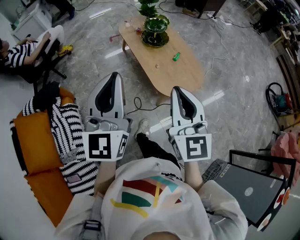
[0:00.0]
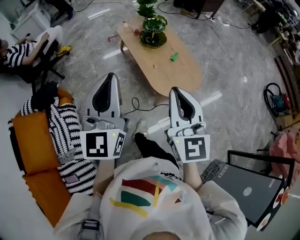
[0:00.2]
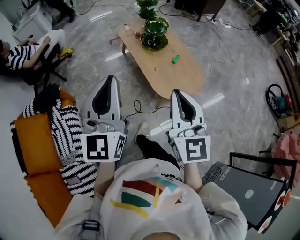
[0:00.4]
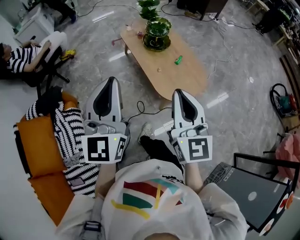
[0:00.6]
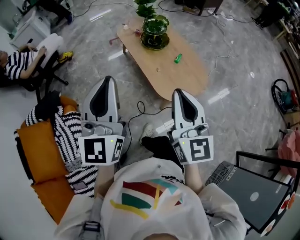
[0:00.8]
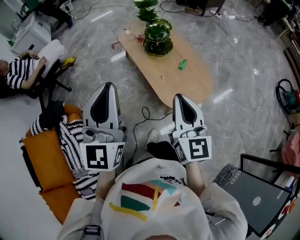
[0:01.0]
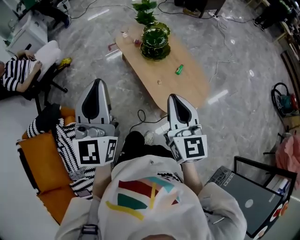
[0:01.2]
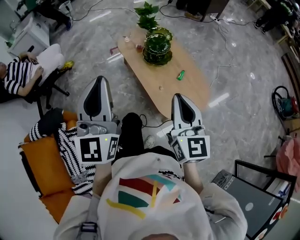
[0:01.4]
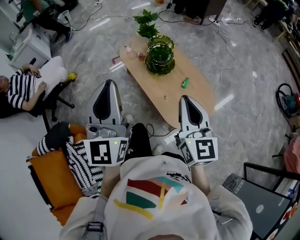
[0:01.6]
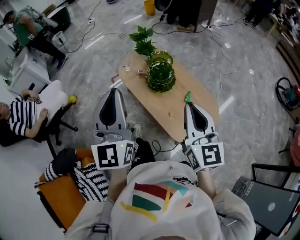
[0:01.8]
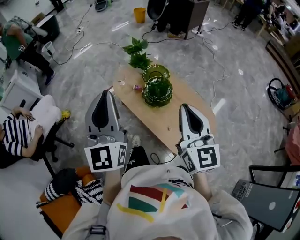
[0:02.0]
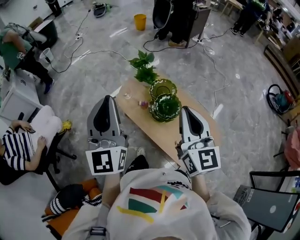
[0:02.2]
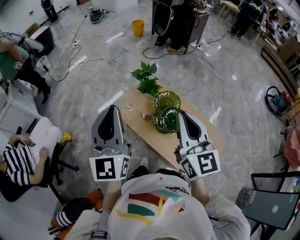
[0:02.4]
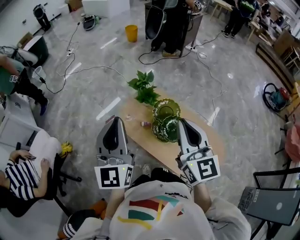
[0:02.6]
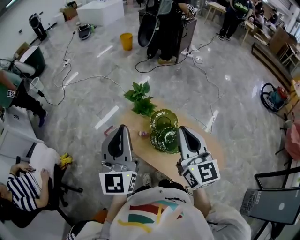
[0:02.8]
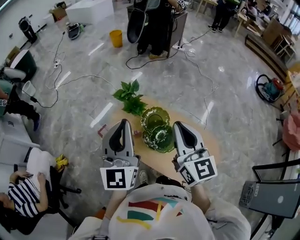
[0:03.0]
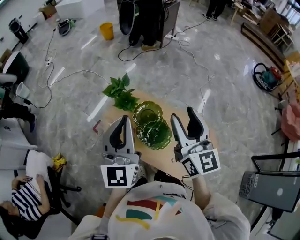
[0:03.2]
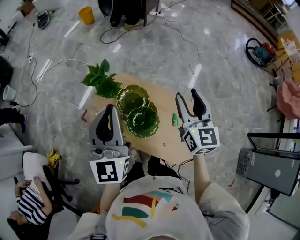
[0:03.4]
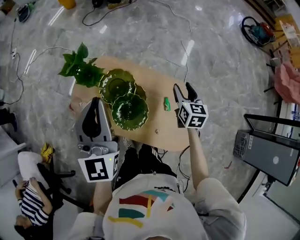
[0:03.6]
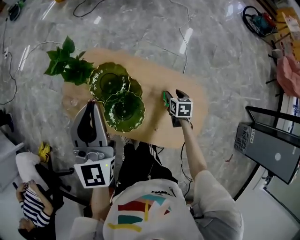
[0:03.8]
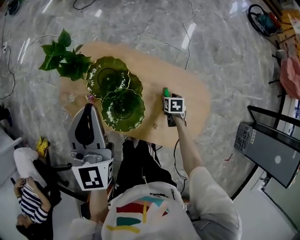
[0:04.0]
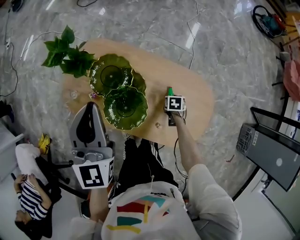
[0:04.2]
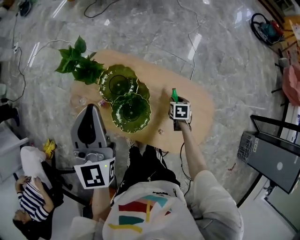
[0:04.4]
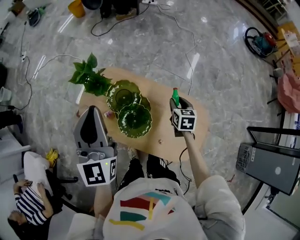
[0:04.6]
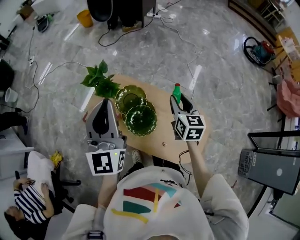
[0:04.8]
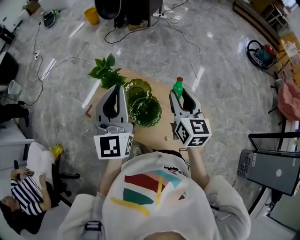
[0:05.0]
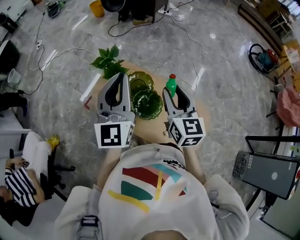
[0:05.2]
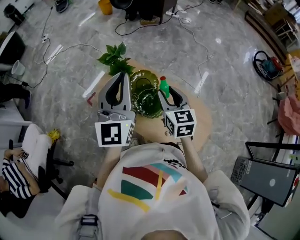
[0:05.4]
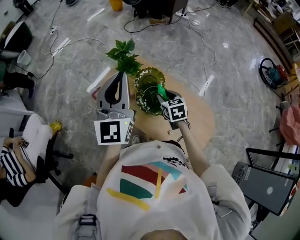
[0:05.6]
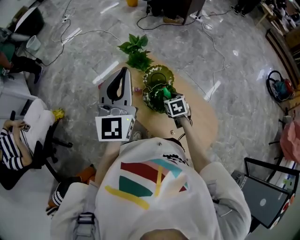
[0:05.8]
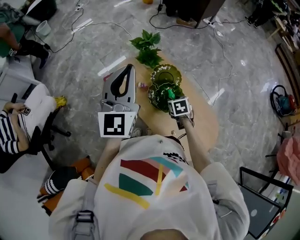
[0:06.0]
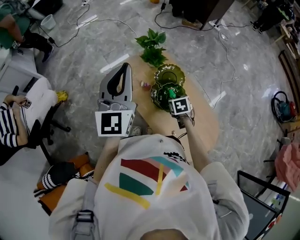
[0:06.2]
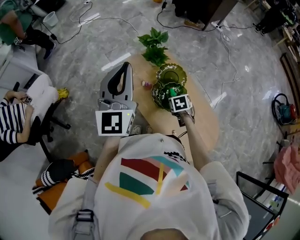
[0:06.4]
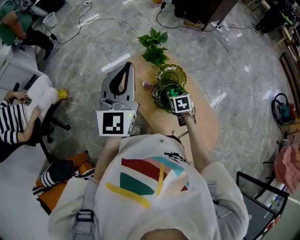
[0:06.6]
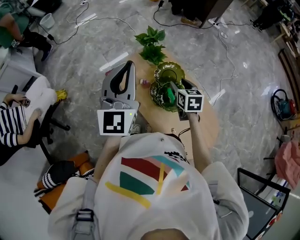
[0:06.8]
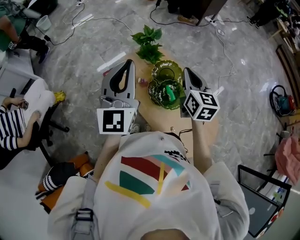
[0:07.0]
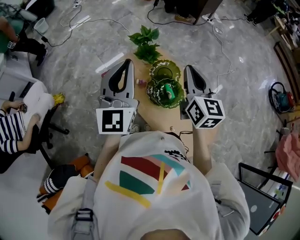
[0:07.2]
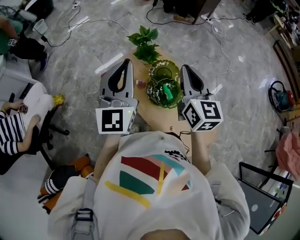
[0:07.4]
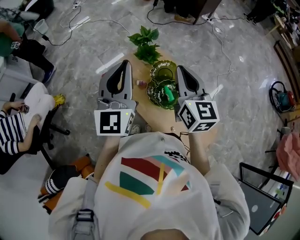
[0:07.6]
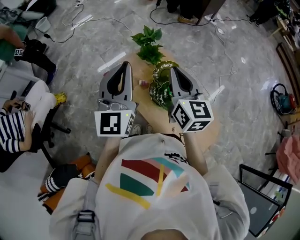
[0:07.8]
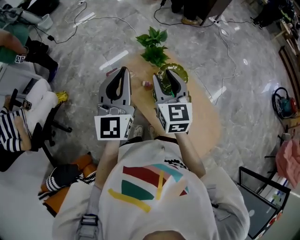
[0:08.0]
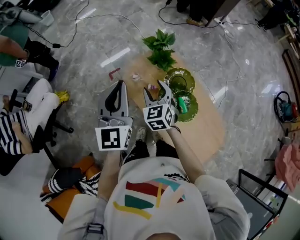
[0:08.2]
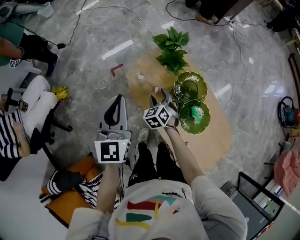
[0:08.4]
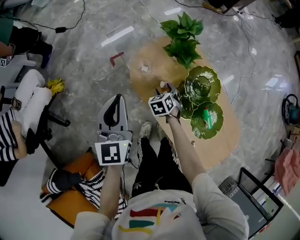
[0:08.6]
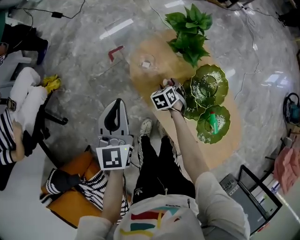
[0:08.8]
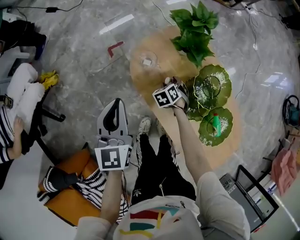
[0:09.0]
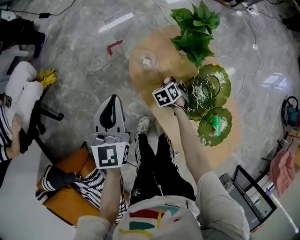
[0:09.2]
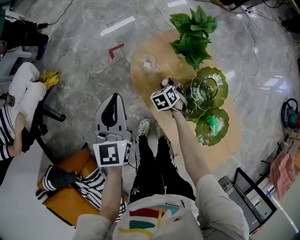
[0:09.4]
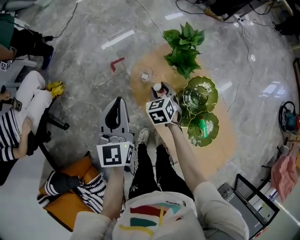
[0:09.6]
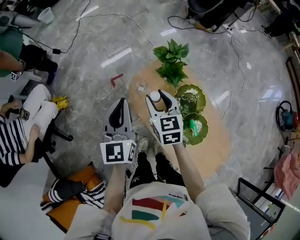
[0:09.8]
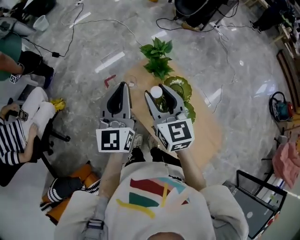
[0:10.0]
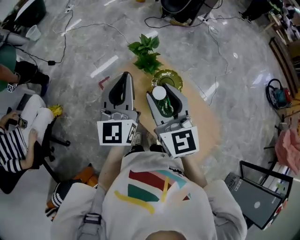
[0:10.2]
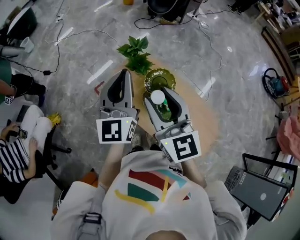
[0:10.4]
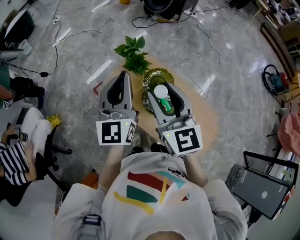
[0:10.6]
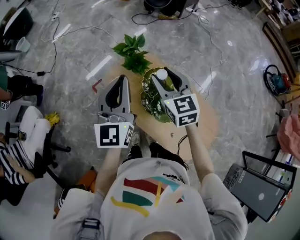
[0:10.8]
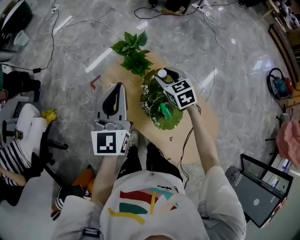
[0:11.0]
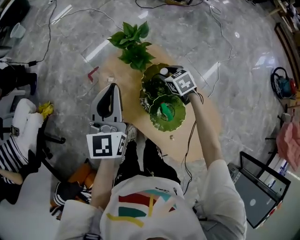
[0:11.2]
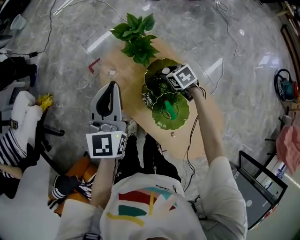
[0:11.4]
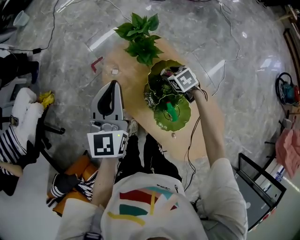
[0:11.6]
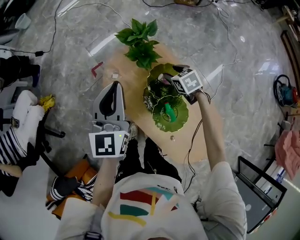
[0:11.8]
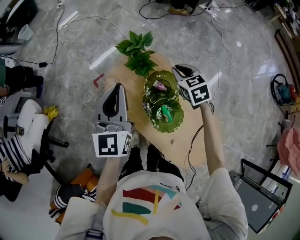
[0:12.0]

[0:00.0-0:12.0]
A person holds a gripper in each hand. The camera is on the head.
0:00.0 to 0:01.6: The grippers both shift forward by approximately 20 cm.
0:01.6 to 0:03.0: The grippers both shift forward by approximately 40 cm. The left gripper rotates about 20 degrees.
0:03.0 to 0:04.4: The left gripper heads downward, covering roughly 15 cm. Meanwhile the right gripper heads downward, covering roughly 50 cm, angles its fingers downward, by about 60 degrees, and opens up.
0:04.4 to 0:06.0: The left gripper moves approximately 20 cm, and changes its angle by roughly 20 degrees; the right gripper changes its angle by some 40 degrees.
0:06.0 to 0:07.6: The right gripper goes approximately 30 cm upward, tips its fingers upward by approximately 50 degrees, and closes.
0:07.6 to 0:09.0: The left gripper shifts about 40 cm downward and to the left, and swivels roughly 30 degrees; the right gripper heads downward, covering approximately 60 cm, angles its fingers downward, by about 60 degrees, and opens its fingers.
0:09.0 to 0:10.4: The right gripper goes approximately 60 cm upward, and tips its fingers upward by approximately 70 degrees. The left gripper heads upward and to the right, covering some 35 cm, and swivels roughly 30 degrees.
0:10.4 to 0:12.0: The right gripper heads downward, forward and to the right, covering about 35 cm, tilts its fingers roughly 40 degrees downward, and closes up; the left gripper travels downward and forward by some 10 cm.

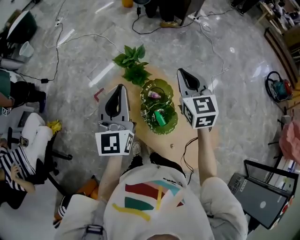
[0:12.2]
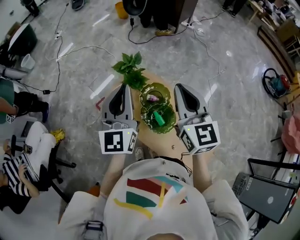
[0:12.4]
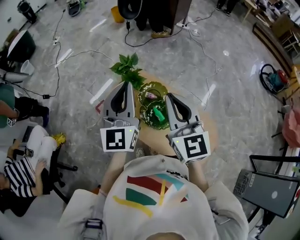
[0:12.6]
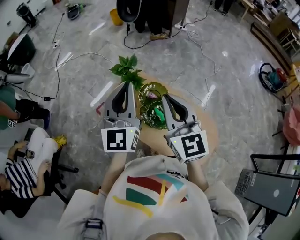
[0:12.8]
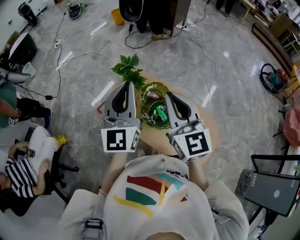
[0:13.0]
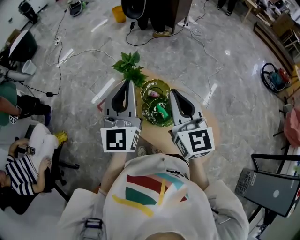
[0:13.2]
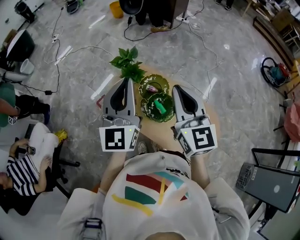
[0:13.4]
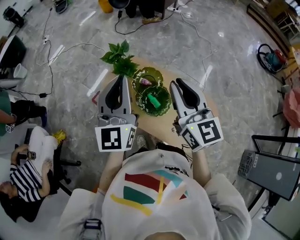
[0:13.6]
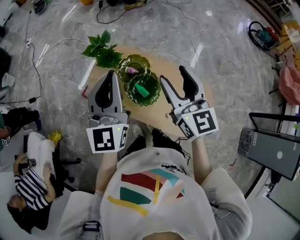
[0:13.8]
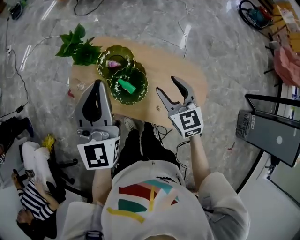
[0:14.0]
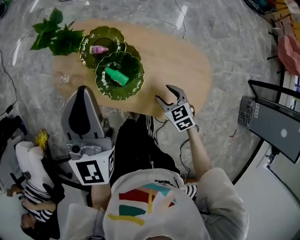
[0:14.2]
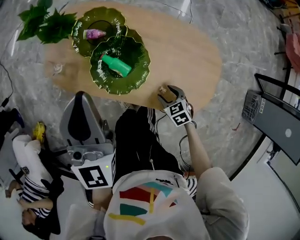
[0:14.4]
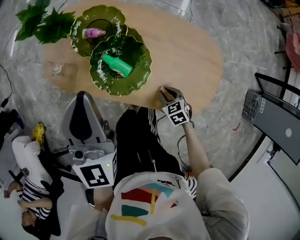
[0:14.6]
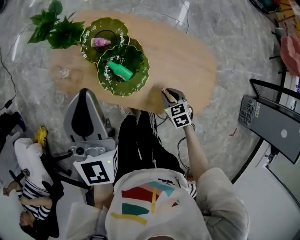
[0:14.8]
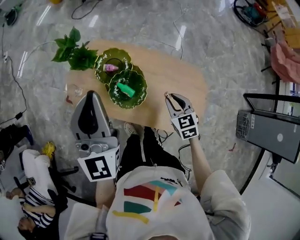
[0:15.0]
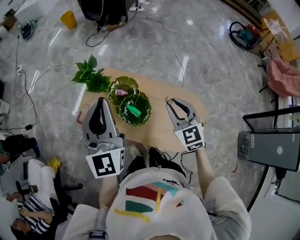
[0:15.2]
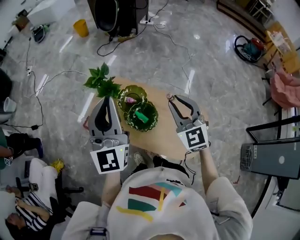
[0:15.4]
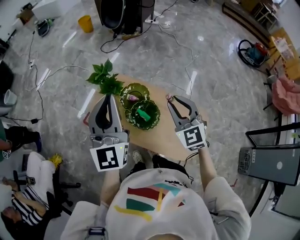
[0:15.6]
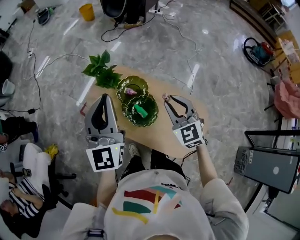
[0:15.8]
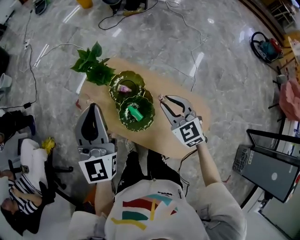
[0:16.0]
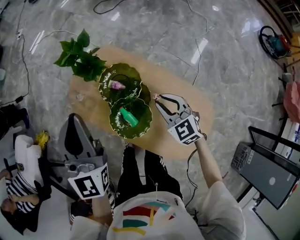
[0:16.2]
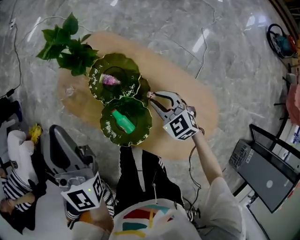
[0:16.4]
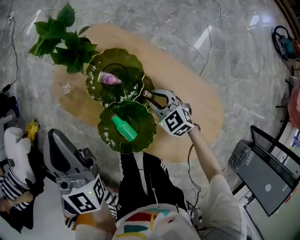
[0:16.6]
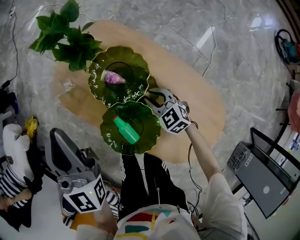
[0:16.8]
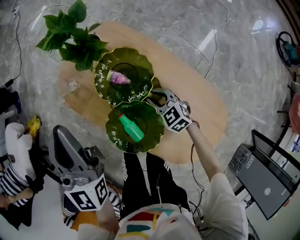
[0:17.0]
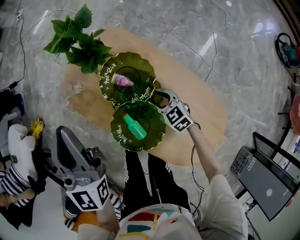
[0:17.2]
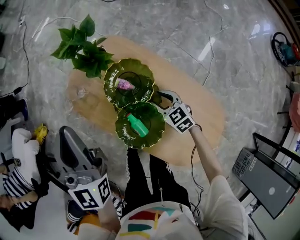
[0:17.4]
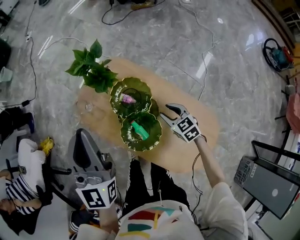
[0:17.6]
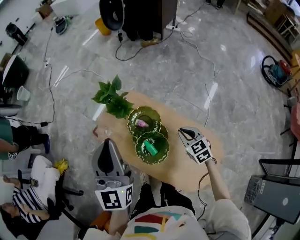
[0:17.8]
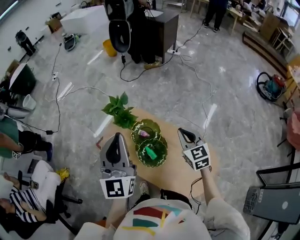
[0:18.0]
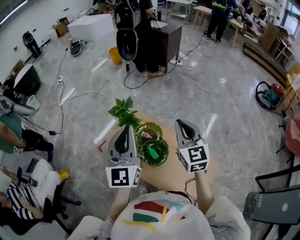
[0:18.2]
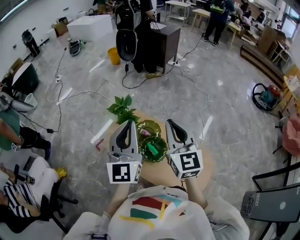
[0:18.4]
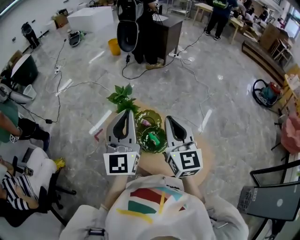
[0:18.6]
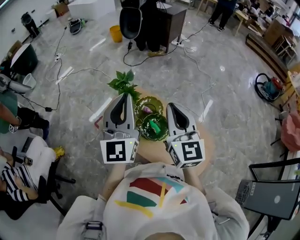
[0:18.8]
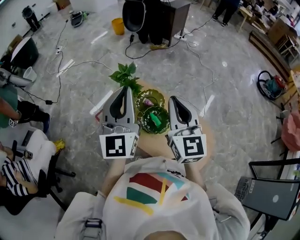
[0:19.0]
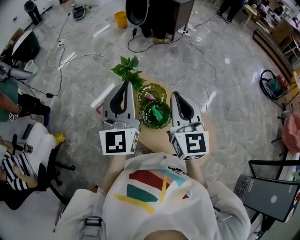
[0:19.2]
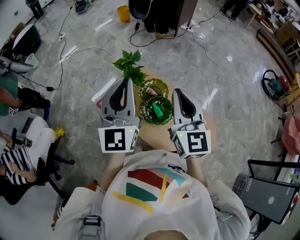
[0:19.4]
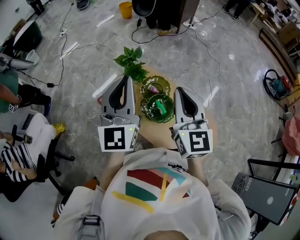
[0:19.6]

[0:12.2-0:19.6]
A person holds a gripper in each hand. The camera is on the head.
0:12.2 to 0:13.6: The left gripper goes some 10 cm backward, to the right and upward; the right gripper moves backward and upward, roughly 20 cm, and turns by roughly 20 degrees.
0:13.6 to 0:15.2: The left gripper moves some 25 cm downward and comes back; the right gripper shifts some 10 cm to the right, goes downward and returns, roughly 60 cm each way, swivels some 30 degrees, and opens, then closes again.
0:15.2 to 0:16.6: The right gripper travels downward by about 35 cm, and rotates approximately 40 degrees. Meanwhile the left gripper goes some 20 cm downward, and changes its angle by approximately 30 degrees.
0:16.6 to 0:18.2: The left gripper goes roughly 25 cm upward, and rotates roughly 20 degrees; the right gripper is displaced upward by approximately 50 cm, and points its fingers roughly 30 degrees further upward.
0:18.2 to 0:19.6: The left gripper changes place by approximately 5 cm, while the right gripper heads to the left and backward, covering about 10 cm.

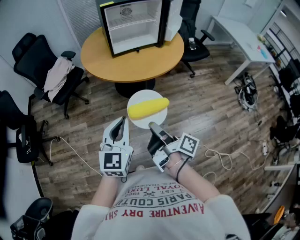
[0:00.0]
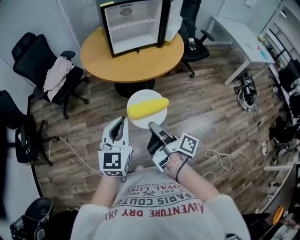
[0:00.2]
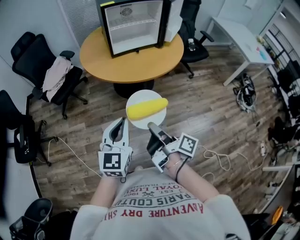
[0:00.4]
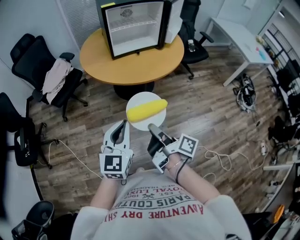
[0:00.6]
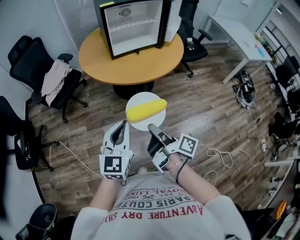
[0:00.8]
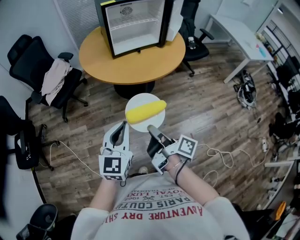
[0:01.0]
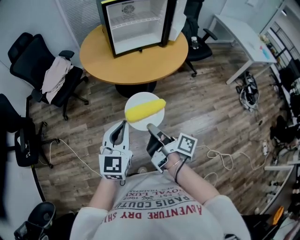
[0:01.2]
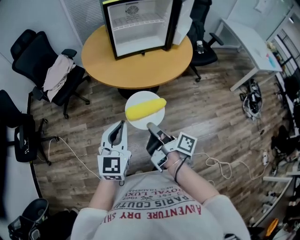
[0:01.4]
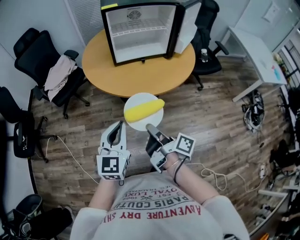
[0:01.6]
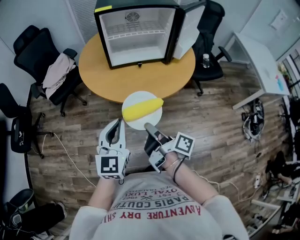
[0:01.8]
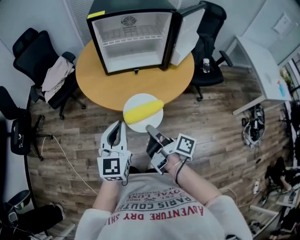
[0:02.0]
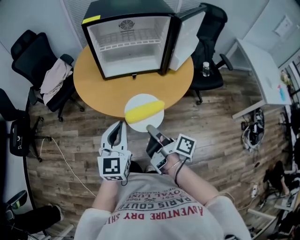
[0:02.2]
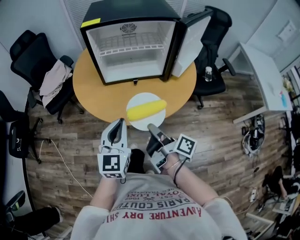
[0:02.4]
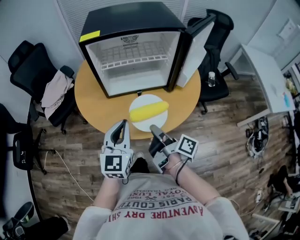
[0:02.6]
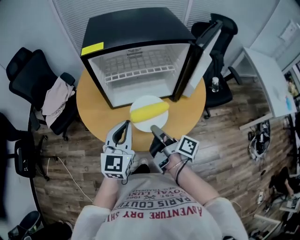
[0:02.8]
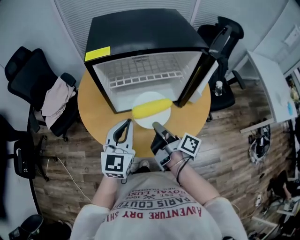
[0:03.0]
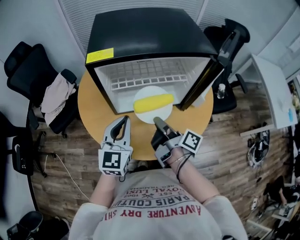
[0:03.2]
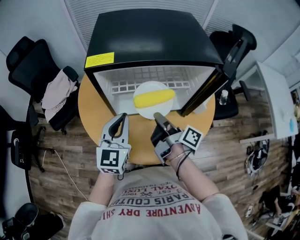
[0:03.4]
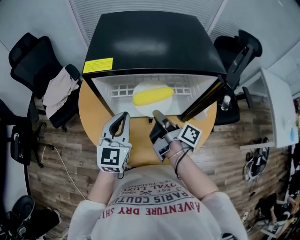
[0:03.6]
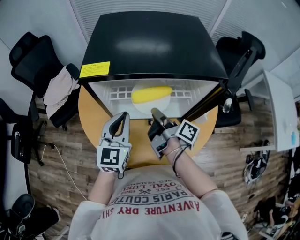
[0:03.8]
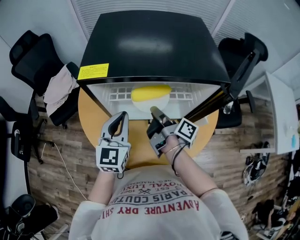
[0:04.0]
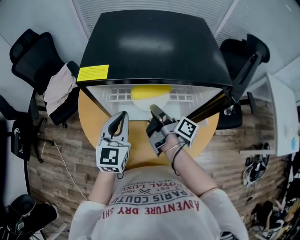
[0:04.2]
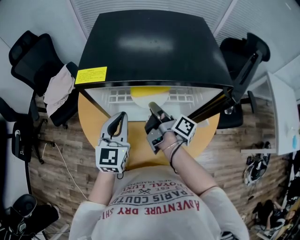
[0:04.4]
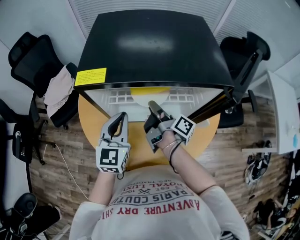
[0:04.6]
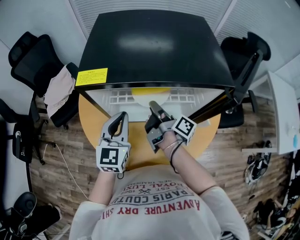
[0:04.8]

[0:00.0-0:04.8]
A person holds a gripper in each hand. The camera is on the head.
0:00.0 to 0:01.6: The left gripper ends up some 15 cm from where it was.
0:01.6 to 0:03.2: The left gripper changes place by some 40 cm.
0:03.2 to 0:04.8: The left gripper shifts by some 10 cm.
